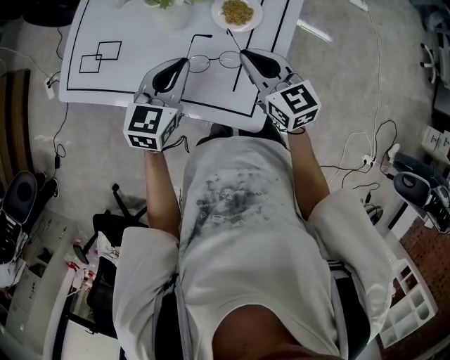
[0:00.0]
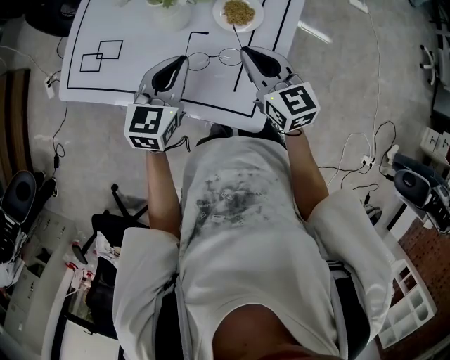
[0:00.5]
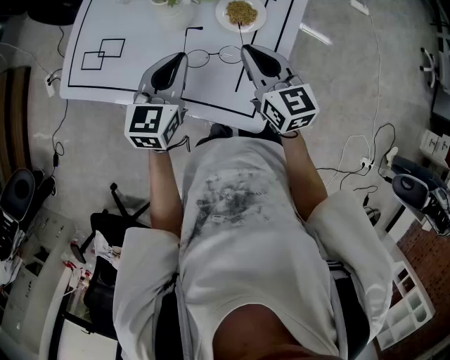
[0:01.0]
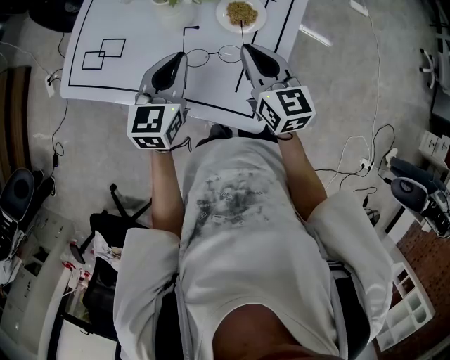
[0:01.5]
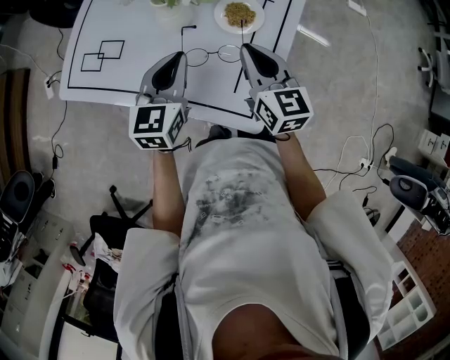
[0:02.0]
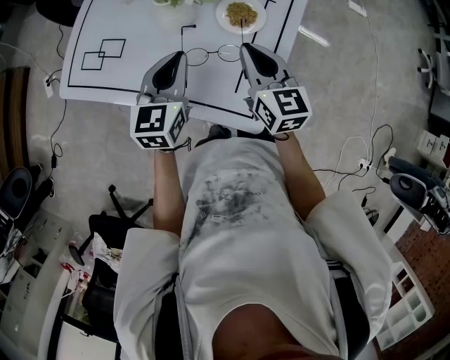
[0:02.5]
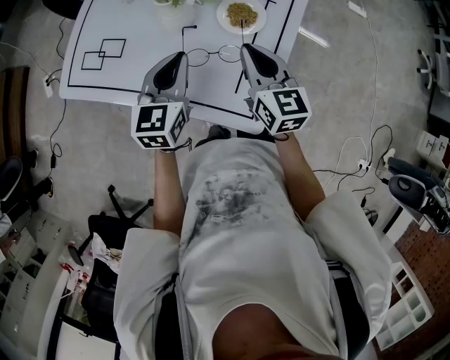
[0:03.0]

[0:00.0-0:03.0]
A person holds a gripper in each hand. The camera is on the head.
0:00.0 to 0:01.5: There are only small adjustments of the grippers.
0:01.5 to 0:03.0: The two grippers keep their place.

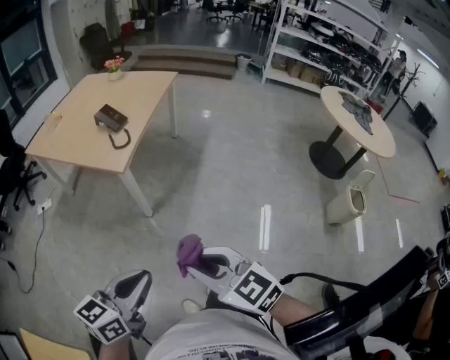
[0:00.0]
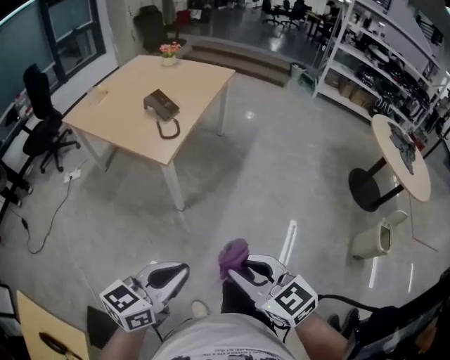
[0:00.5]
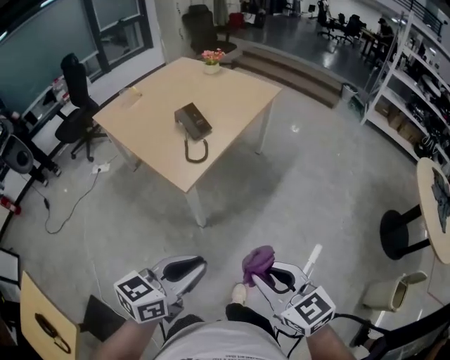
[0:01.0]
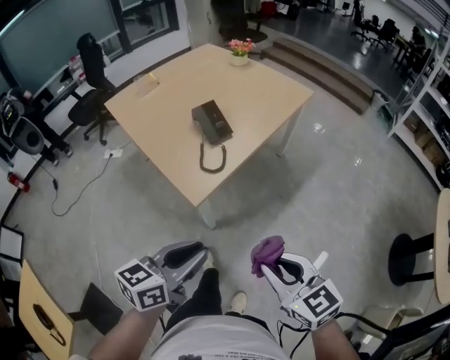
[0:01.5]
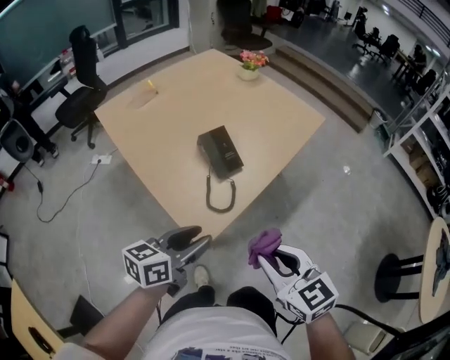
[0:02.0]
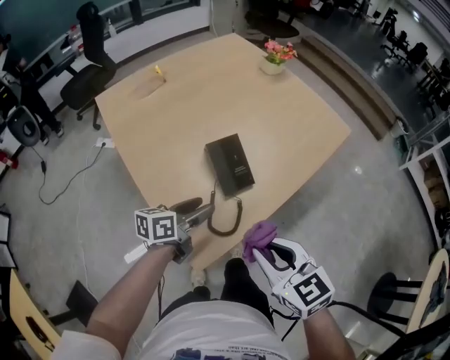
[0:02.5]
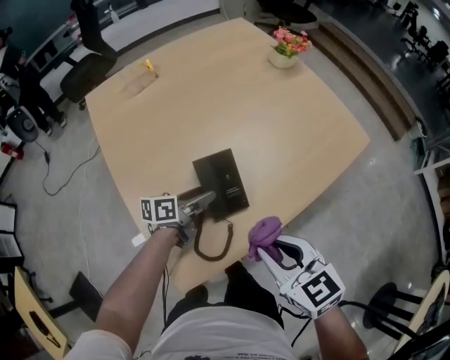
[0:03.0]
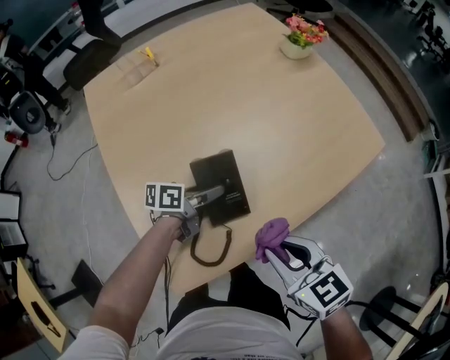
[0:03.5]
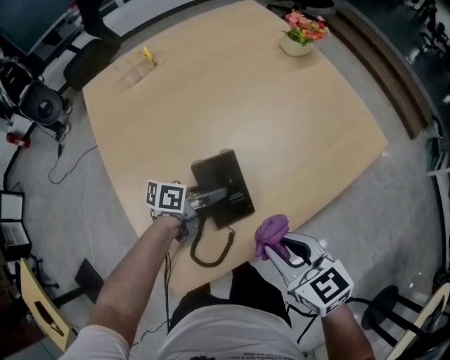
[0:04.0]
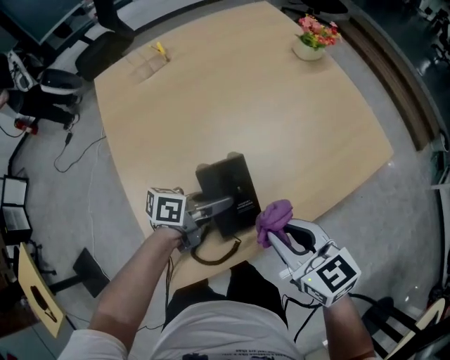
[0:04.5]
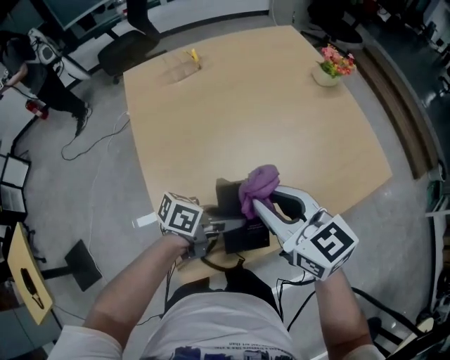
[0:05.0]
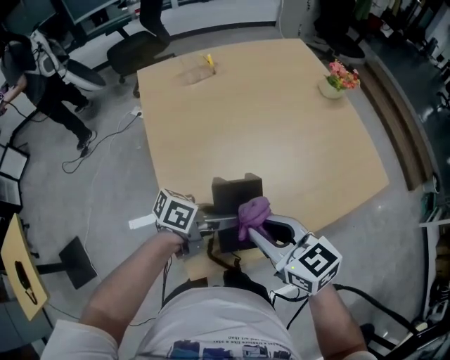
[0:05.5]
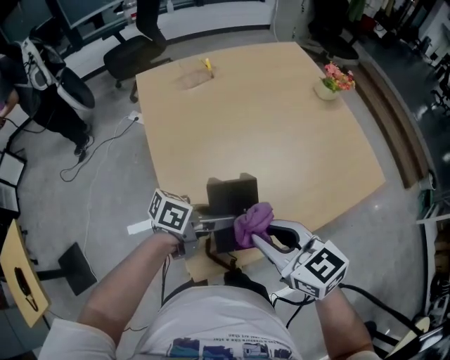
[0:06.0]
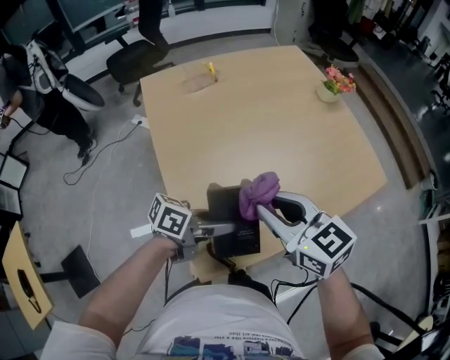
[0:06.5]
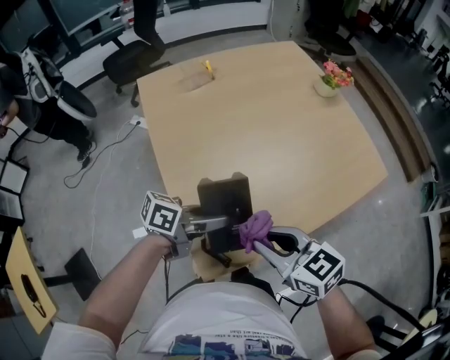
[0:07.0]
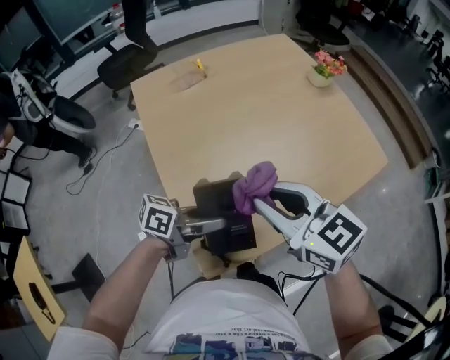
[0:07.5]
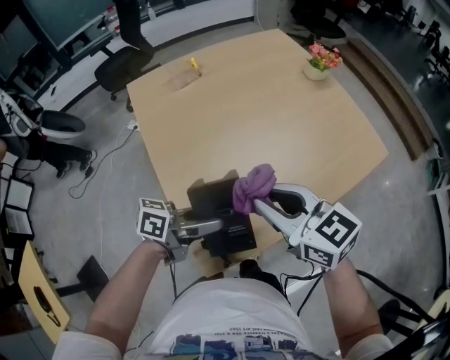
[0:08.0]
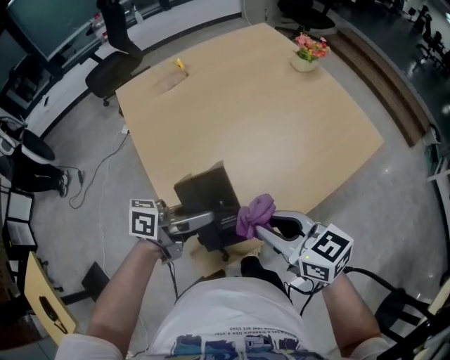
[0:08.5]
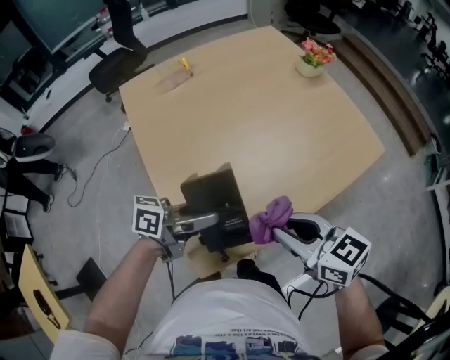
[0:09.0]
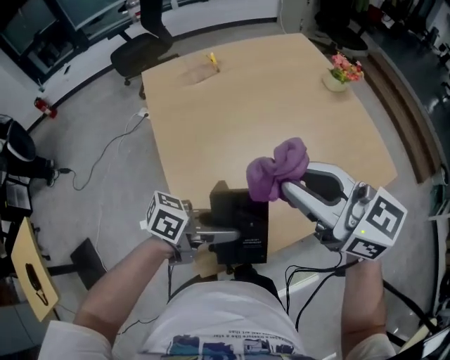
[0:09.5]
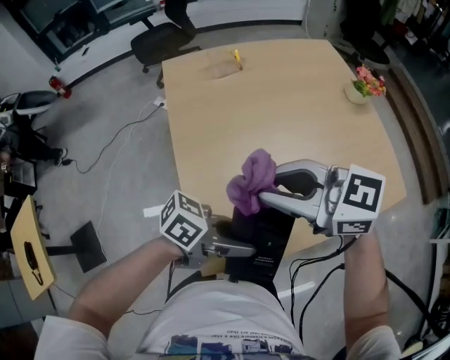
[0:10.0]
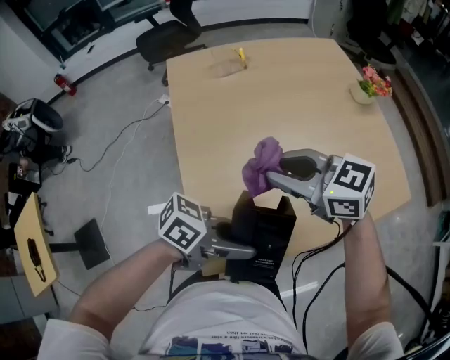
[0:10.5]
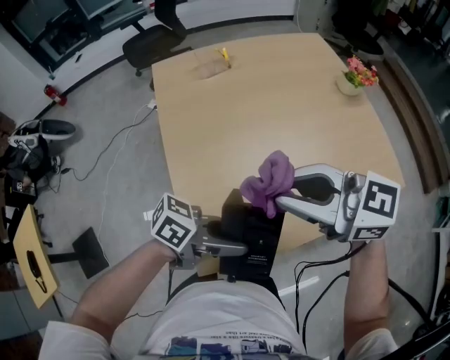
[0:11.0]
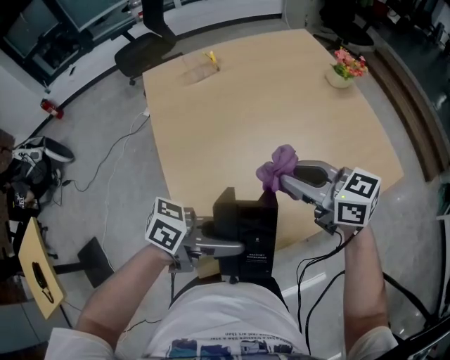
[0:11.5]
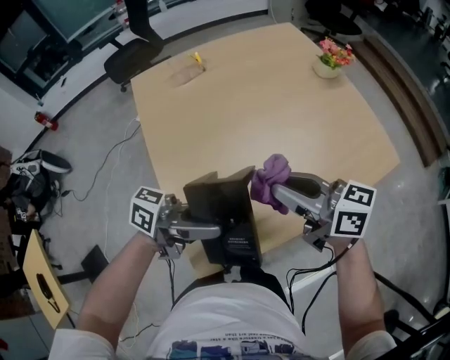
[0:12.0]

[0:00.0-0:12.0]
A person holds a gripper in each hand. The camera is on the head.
0:00.0 to 0:02.0: Both grippers are carried forward, some 50 cm. The left gripper swivels roughly 20 degrees, and opens up.
0:02.0 to 0:04.0: The right gripper moves forward, about 25 cm, and swivels roughly 20 degrees; the left gripper is displaced forward and downward by about 35 cm, turns by about 30 degrees, and opens, then closes again.
0:04.0 to 0:06.0: The right gripper moves approximately 15 cm. The left gripper shifts some 10 cm upward.
0:06.0 to 0:08.0: The right gripper ends up roughly 5 cm from where it was; the left gripper shifts by approximately 5 cm.
0:08.0 to 0:10.0: The right gripper swings up and down, approximately 15 cm each way, with 2 reversals, and rotates about 40 degrees, while the left gripper moves about 10 cm.
0:10.0 to 0:12.0: The right gripper moves up and down over approximately 10 cm, changing direction 2 times, and changes its angle by about 40 degrees. The left gripper ends up approximately 5 cm from where it was.

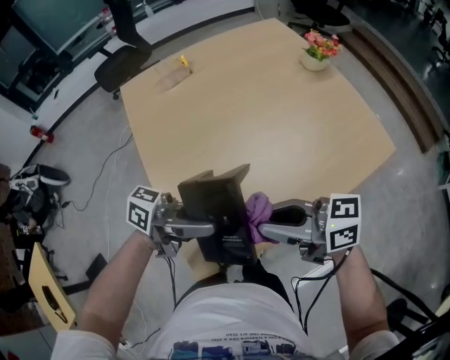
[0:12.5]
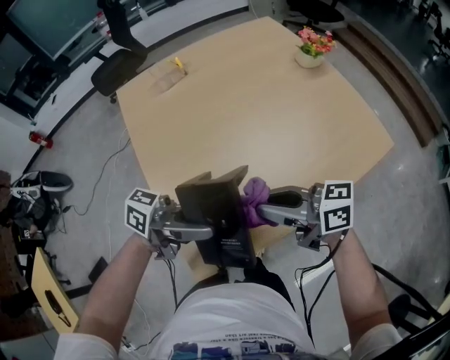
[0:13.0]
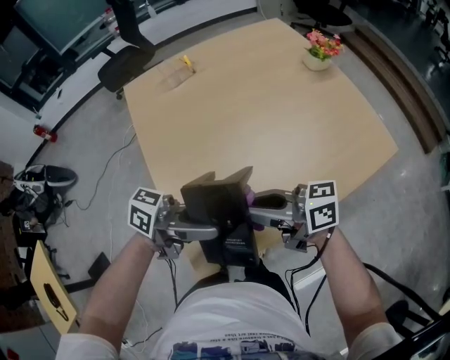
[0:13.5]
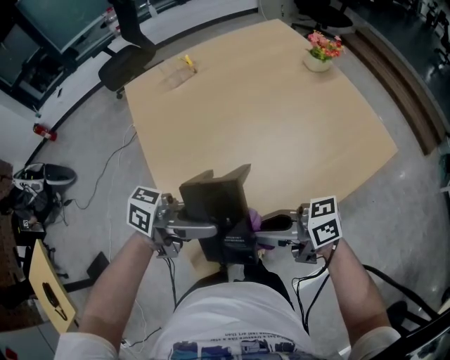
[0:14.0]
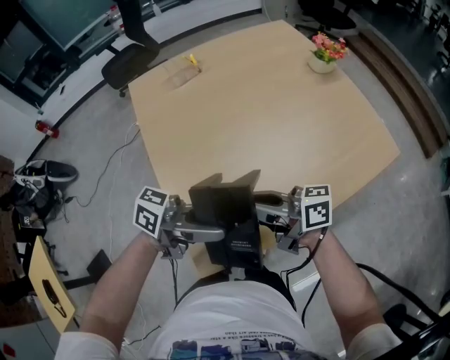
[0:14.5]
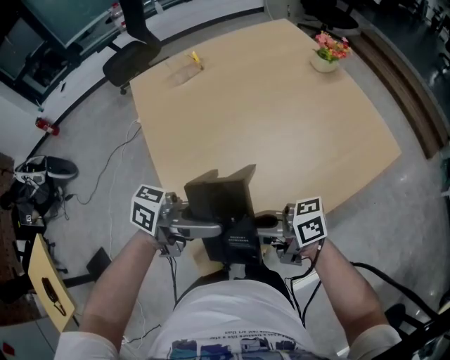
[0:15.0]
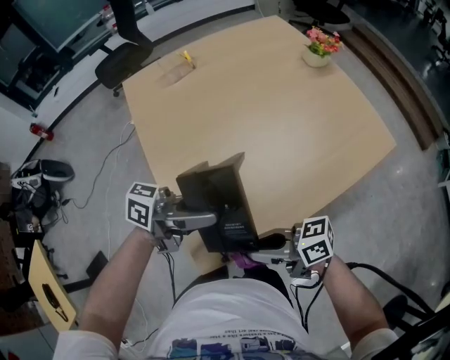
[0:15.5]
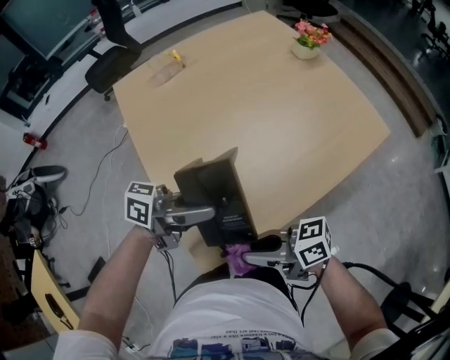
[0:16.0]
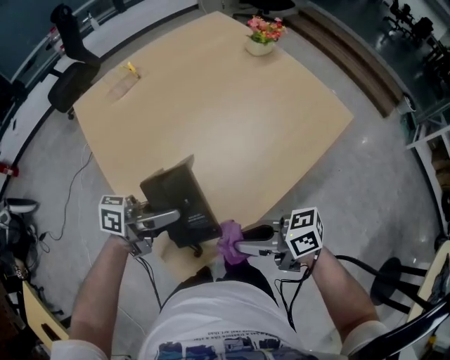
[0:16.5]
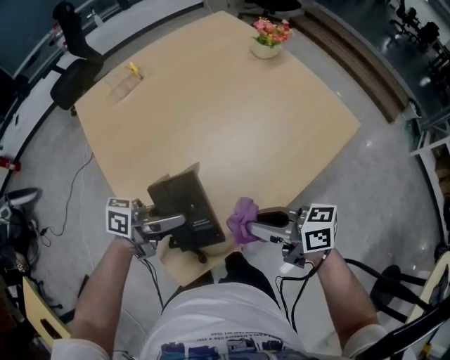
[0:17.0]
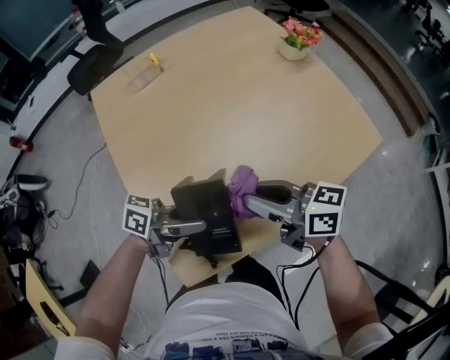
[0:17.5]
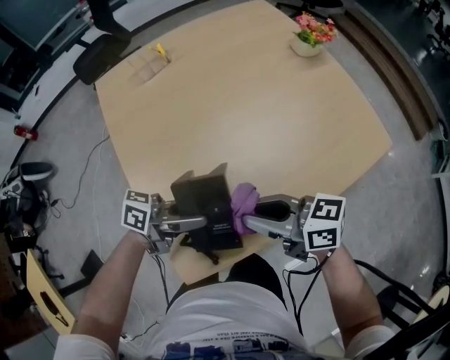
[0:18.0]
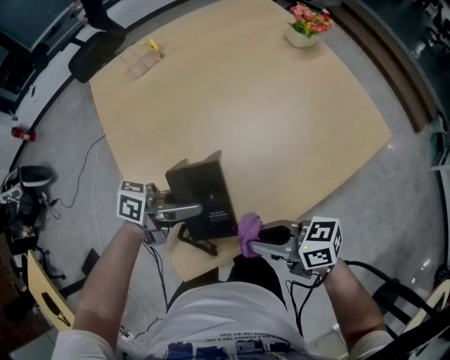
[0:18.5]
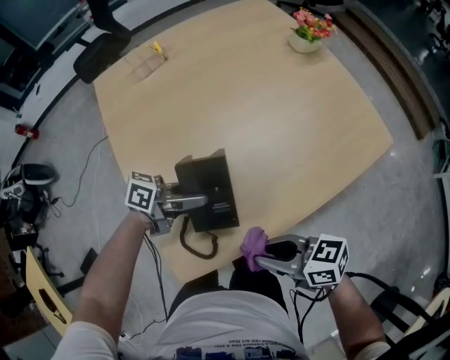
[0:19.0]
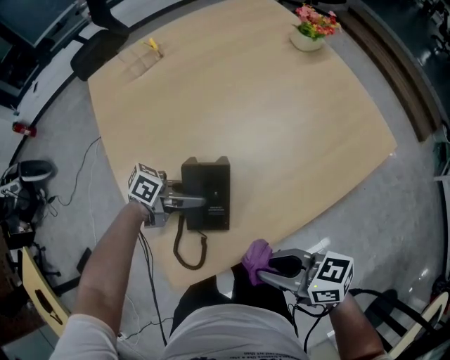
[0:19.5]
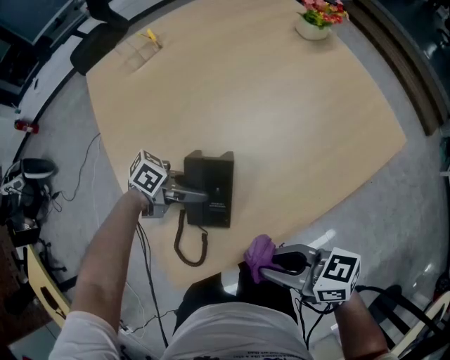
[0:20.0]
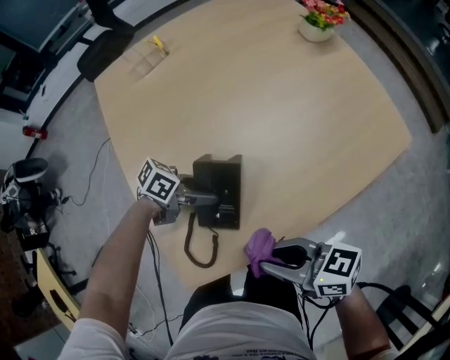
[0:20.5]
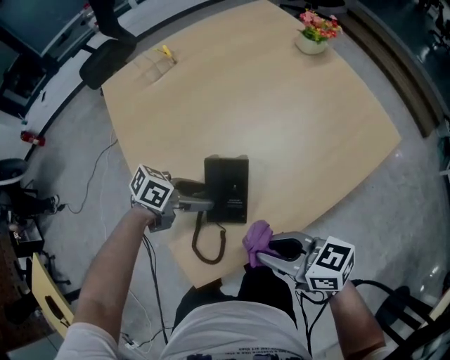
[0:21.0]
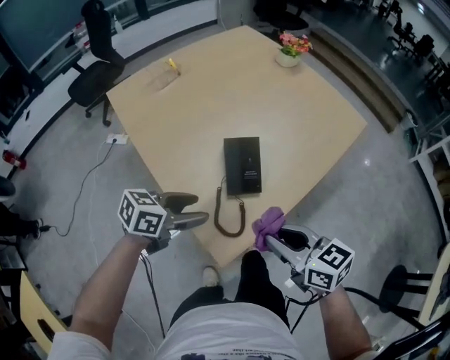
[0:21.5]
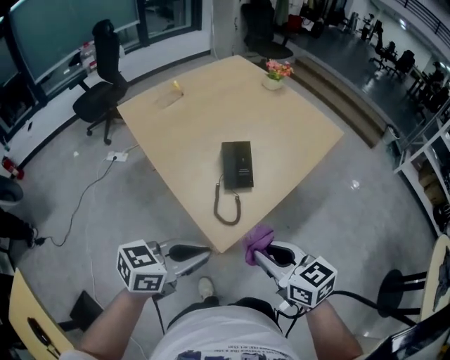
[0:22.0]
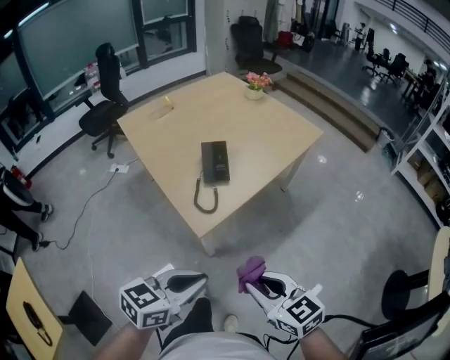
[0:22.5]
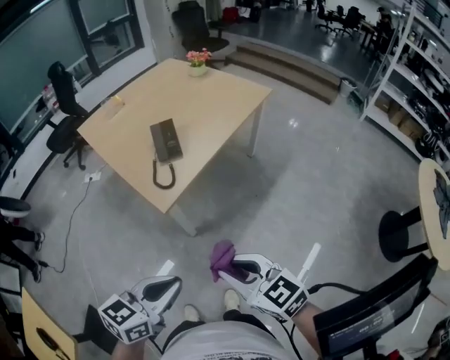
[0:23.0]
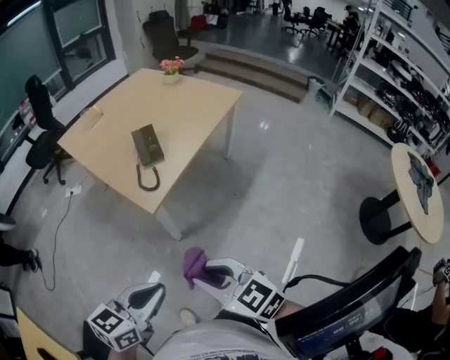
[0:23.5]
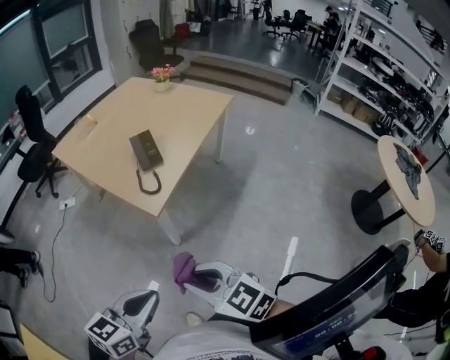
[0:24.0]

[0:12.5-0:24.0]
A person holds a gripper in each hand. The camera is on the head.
0:12.5 to 0:14.5: The right gripper shifts by about 5 cm.
0:14.5 to 0:16.5: The left gripper goes about 5 cm downward. Meanwhile the right gripper ends up roughly 15 cm from where it was.
0:16.5 to 0:18.5: The left gripper shifts by approximately 5 cm.
0:18.5 to 0:20.0: The left gripper heads downward, covering roughly 10 cm, and swivels about 20 degrees.
0:20.0 to 0:22.0: The left gripper changes place by roughly 35 cm, changes its angle by roughly 40 degrees, and closes; the right gripper moves some 20 cm, and turns by some 40 degrees.
0:22.0 to 0:24.0: The two grippers go approximately 25 cm backward.
